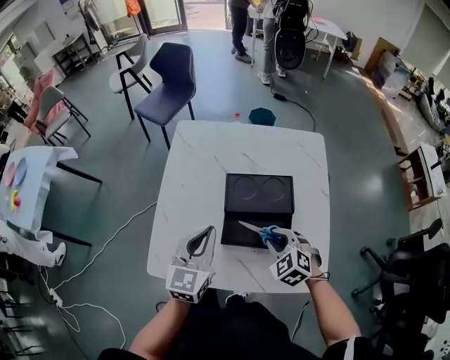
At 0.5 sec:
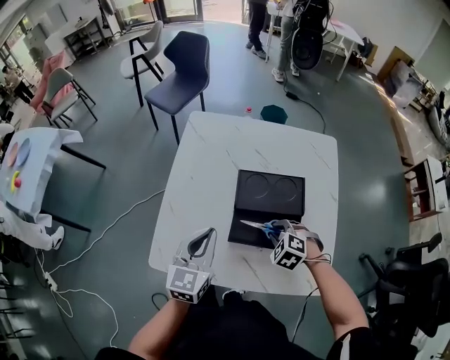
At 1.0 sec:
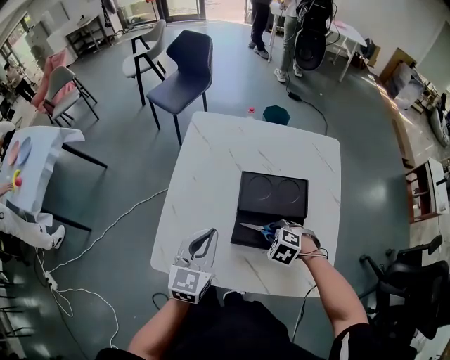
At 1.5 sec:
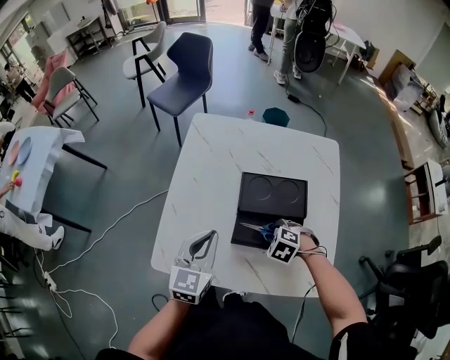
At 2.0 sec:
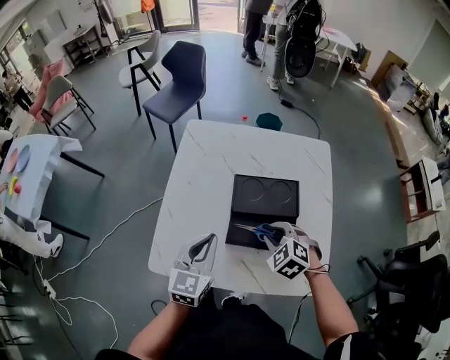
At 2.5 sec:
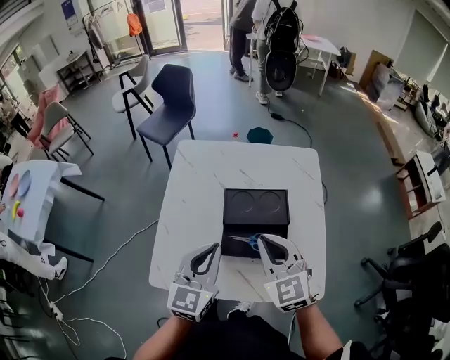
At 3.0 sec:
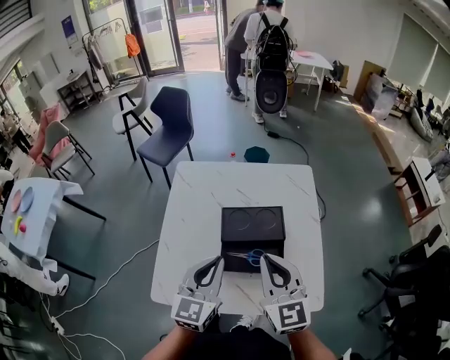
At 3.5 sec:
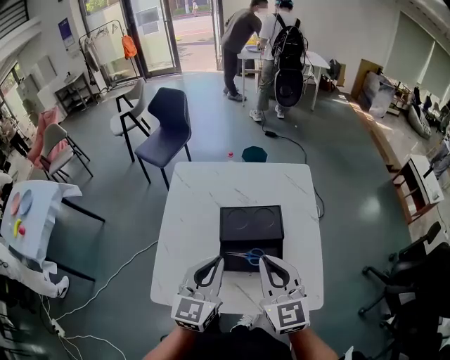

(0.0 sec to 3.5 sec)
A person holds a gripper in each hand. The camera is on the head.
0.0 sec - 2.0 sec: The right gripper goes downward and returns, about 10 cm each way.
2.0 sec - 3.5 sec: The left gripper is displaced upward and to the right by some 10 cm. The right gripper travels upward by about 20 cm, tilts its fingers about 50 degrees upward, and closes.

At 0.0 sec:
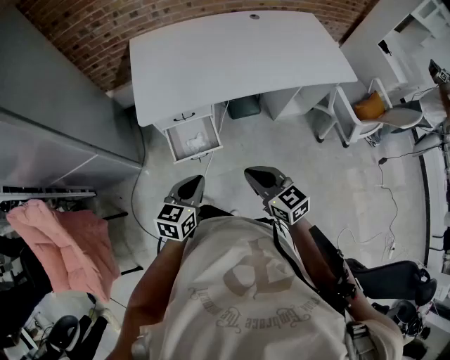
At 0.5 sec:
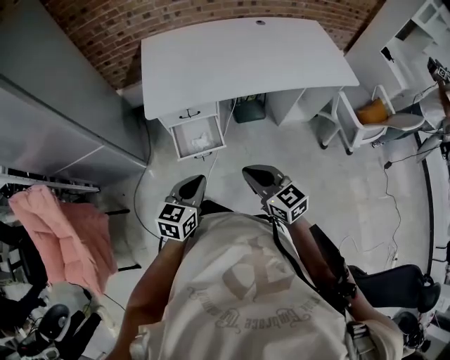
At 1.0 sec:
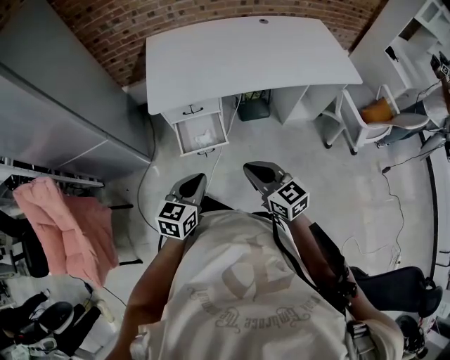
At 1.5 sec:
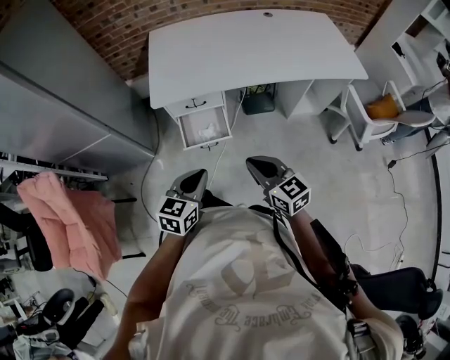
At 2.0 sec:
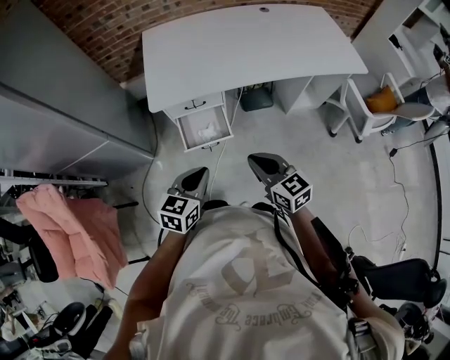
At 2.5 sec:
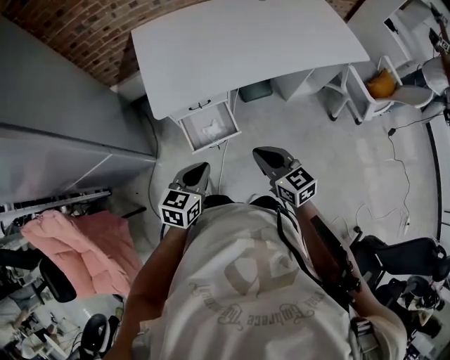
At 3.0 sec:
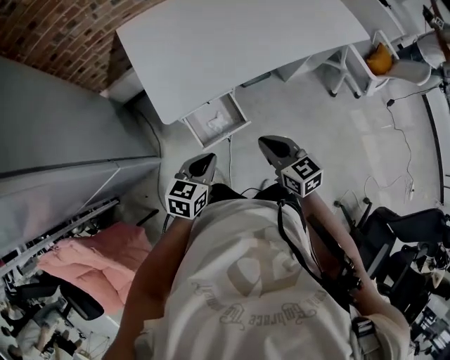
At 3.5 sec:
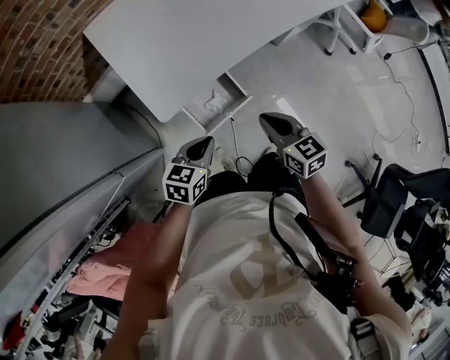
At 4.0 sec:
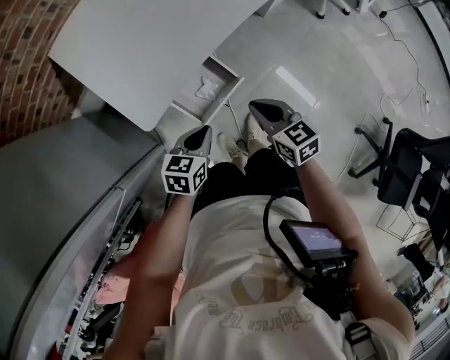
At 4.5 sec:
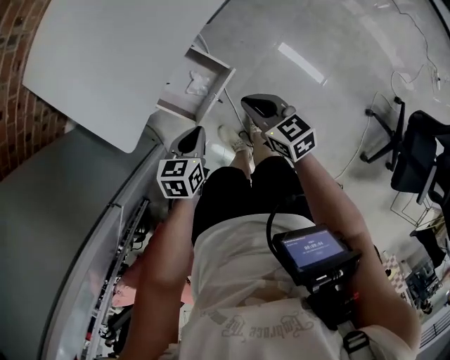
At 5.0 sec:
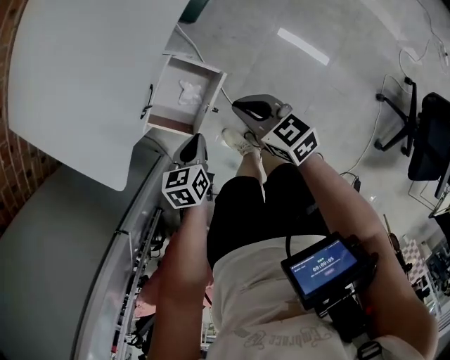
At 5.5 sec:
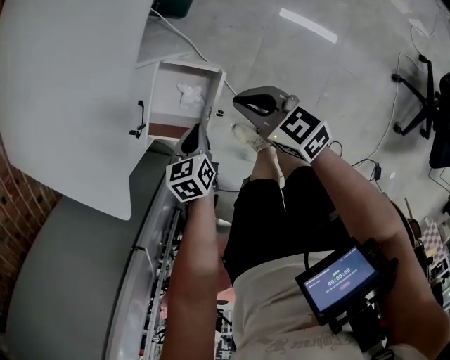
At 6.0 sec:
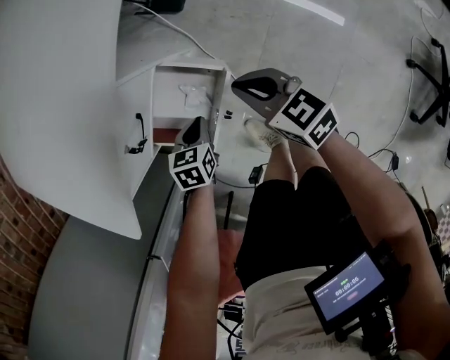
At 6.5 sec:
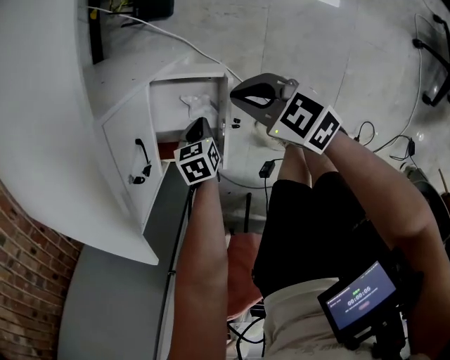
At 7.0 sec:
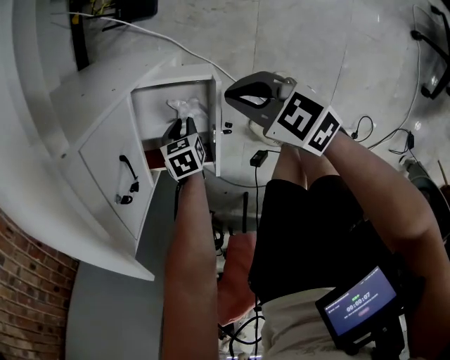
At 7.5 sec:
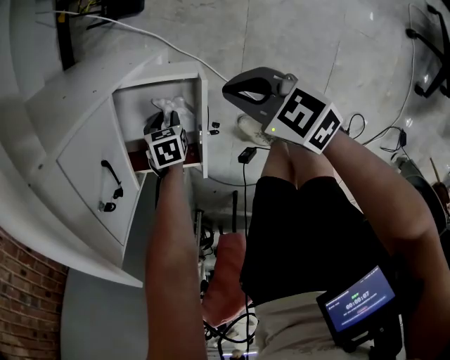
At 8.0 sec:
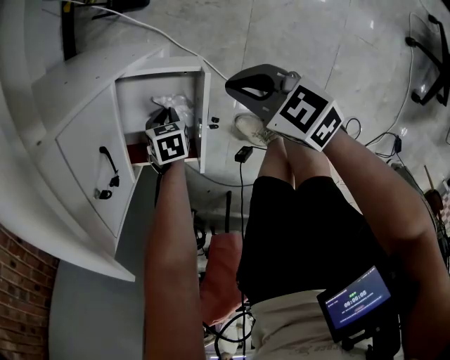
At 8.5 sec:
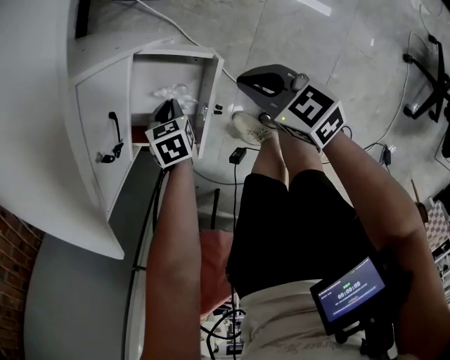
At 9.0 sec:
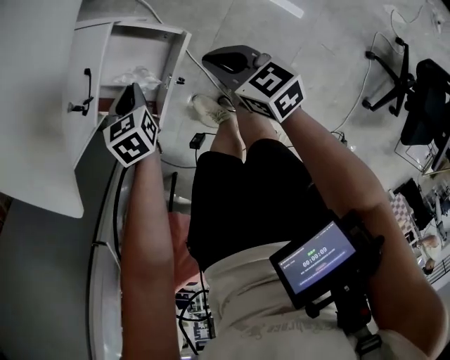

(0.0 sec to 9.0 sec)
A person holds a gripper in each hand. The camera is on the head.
2.0 sec - 4.5 sec: The two grippers go about 20 cm downward. The right gripper turns by about 40 degrees. The left gripper rotates about 40 degrees.
4.5 sec - 7.0 sec: The left gripper shifts about 35 cm downward, tilts its fingers about 30 degrees downward, and opens its fingers. Meanwhile the right gripper moves downward, roughly 20 cm.
7.0 sec - 9.0 sec: The left gripper moves upward, some 15 cm, and changes its angle by some 20 degrees, while the right gripper goes about 5 cm upward.

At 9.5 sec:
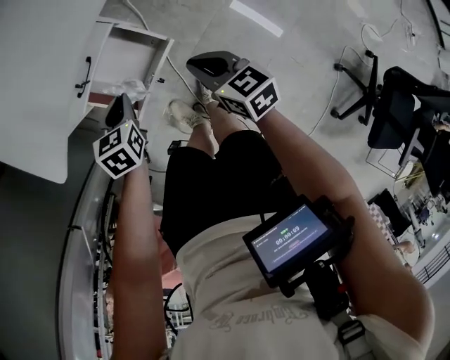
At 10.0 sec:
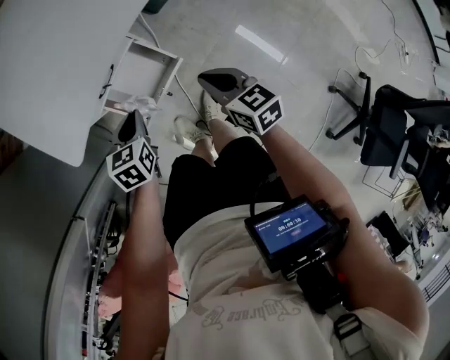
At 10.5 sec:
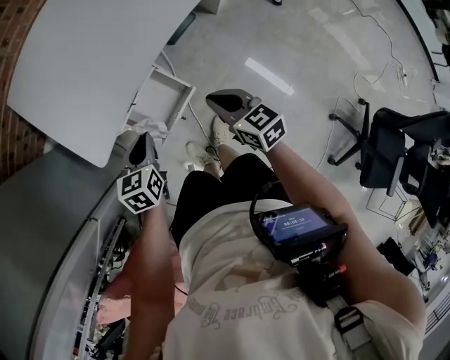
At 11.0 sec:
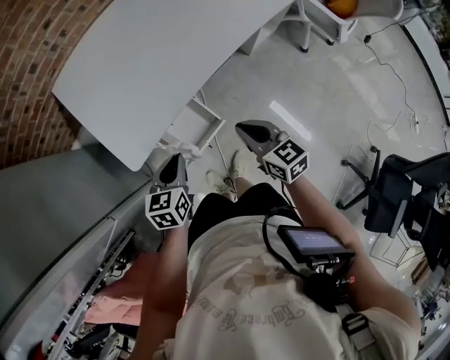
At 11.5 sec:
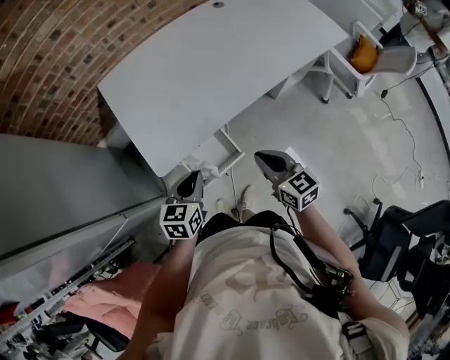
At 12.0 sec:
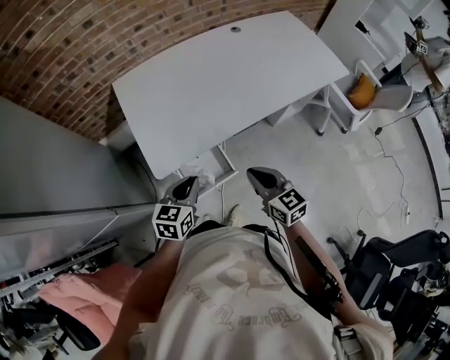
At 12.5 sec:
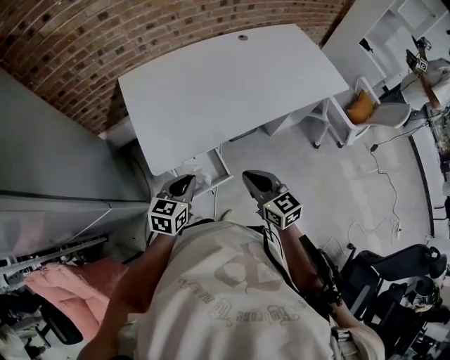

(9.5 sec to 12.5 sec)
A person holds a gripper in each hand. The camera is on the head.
9.5 sec - 11.0 sec: Both grippers move upward, about 25 cm.
11.0 sec - 12.5 sec: The grippers both shift upward by roughly 10 cm.

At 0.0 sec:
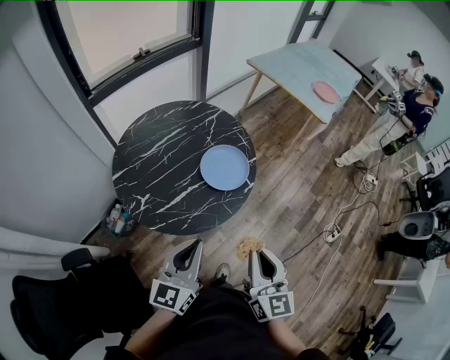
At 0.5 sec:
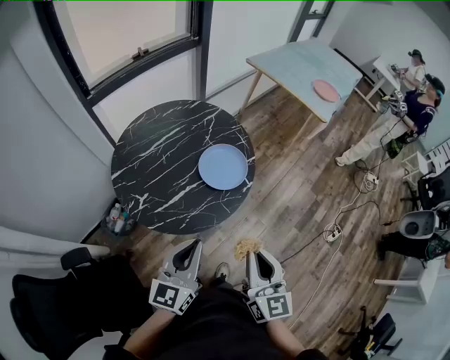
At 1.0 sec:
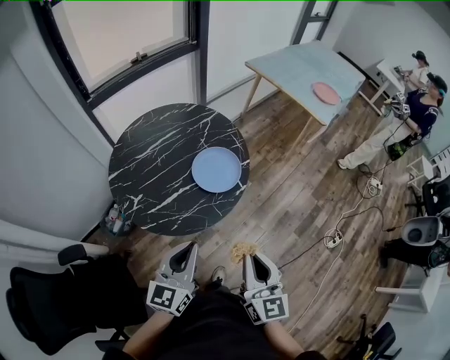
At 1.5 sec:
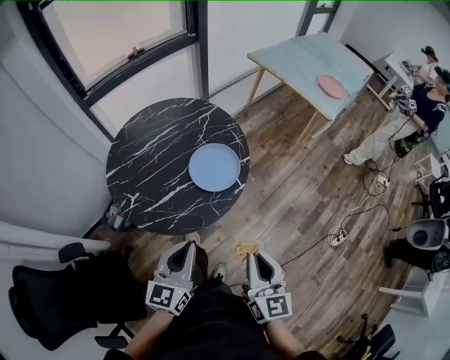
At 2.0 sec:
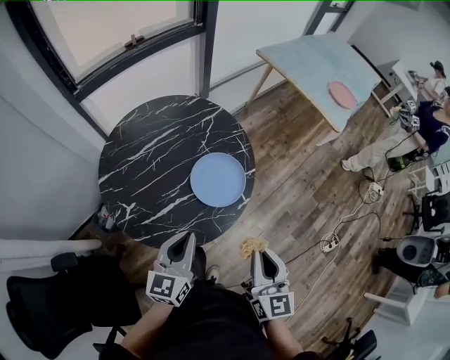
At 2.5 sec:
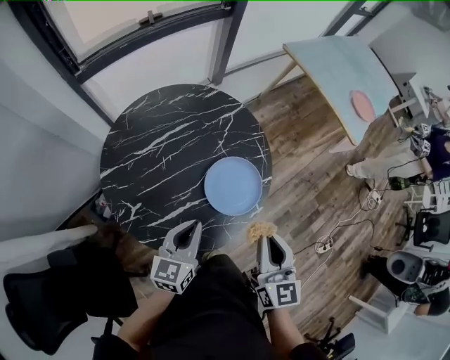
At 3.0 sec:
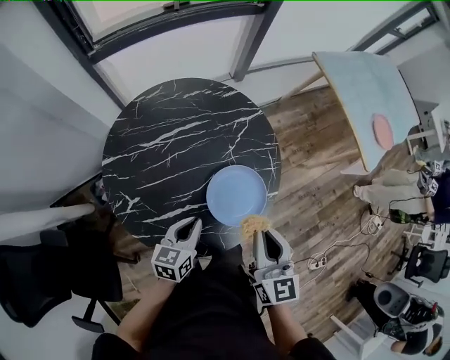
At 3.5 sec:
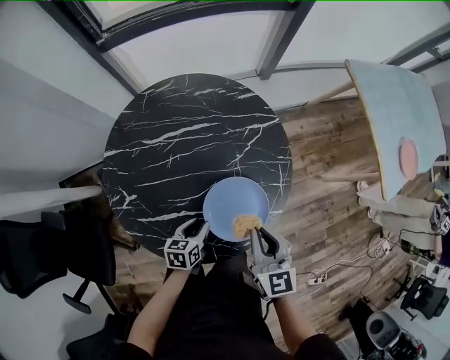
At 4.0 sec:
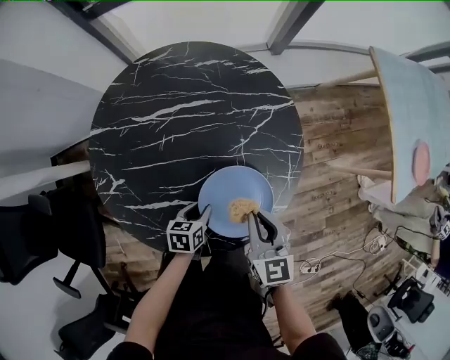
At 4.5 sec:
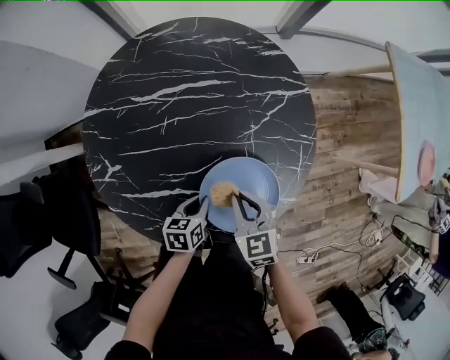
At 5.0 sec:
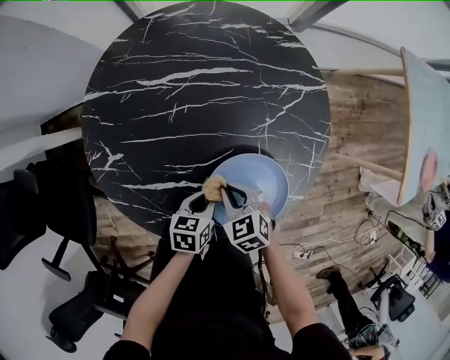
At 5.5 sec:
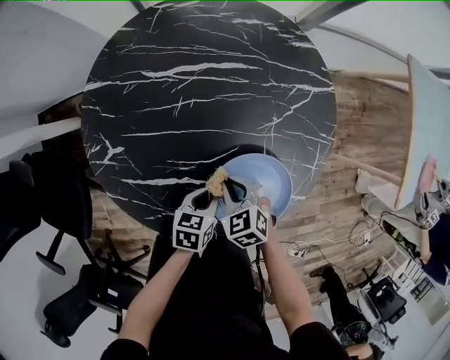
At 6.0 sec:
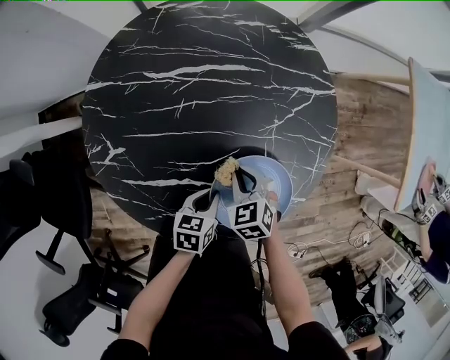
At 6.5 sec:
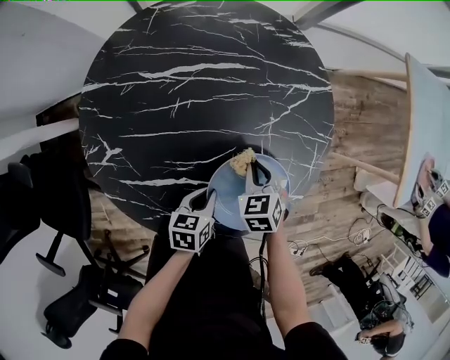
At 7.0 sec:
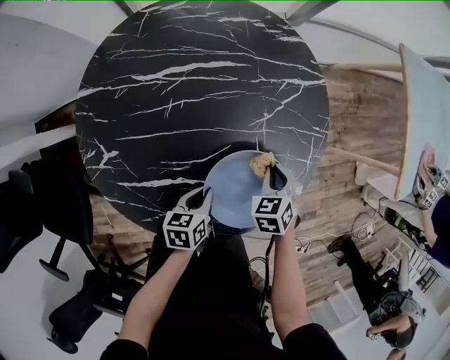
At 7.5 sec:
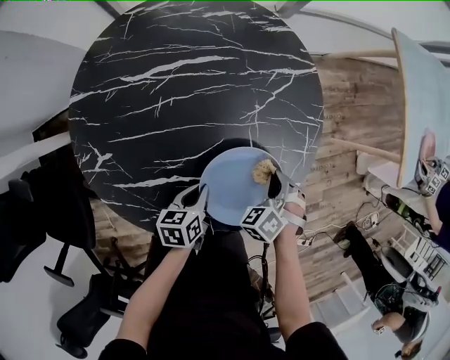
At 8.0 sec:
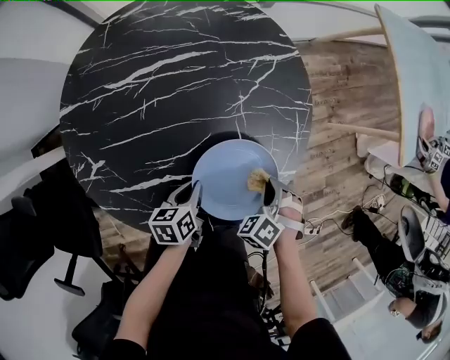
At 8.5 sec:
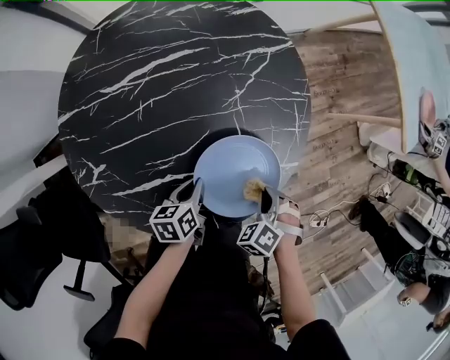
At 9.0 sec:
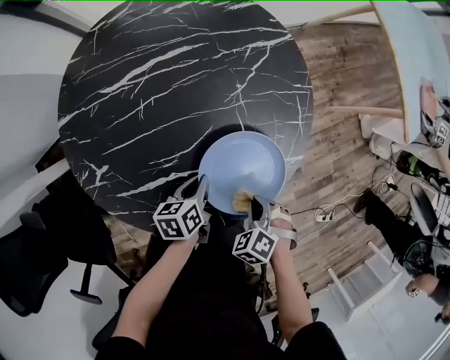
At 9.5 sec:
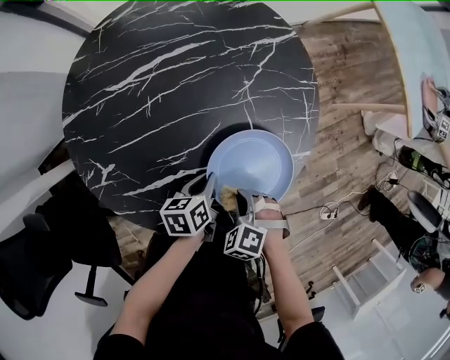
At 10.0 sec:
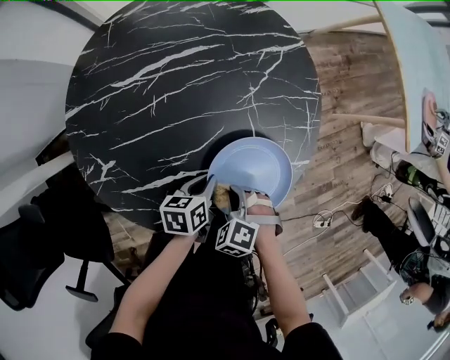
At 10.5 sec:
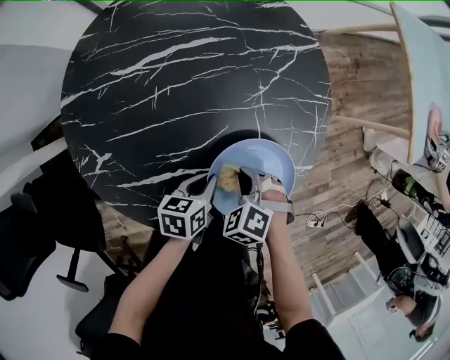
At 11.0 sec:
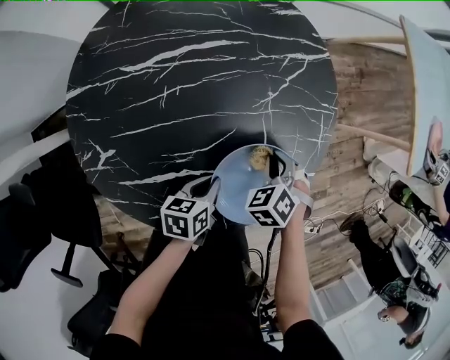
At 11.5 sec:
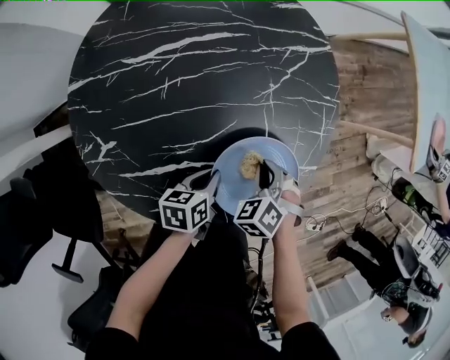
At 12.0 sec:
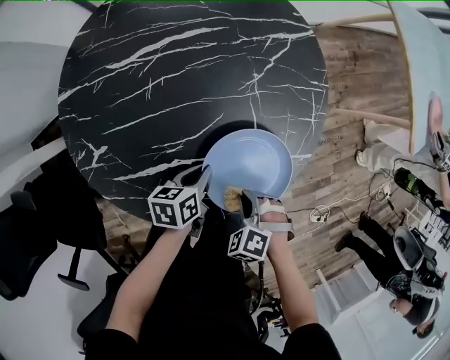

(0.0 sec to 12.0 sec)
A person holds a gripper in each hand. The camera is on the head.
0.0 sec - 2.0 sec: The left gripper travels forward and downward by roughly 15 cm; the right gripper goes approximately 15 cm forward.
2.0 sec - 4.0 sec: The left gripper travels downward and forward by approximately 40 cm, points its fingers about 40 degrees further downward, and opens up, while the right gripper is displaced forward and downward by approximately 35 cm, and changes its angle by roughly 40 degrees.
4.0 sec - 6.0 sec: The right gripper shifts some 20 cm downward and to the left, and rotates some 40 degrees, while the left gripper closes.
6.0 sec - 8.0 sec: The right gripper changes place by roughly 20 cm, and rotates about 40 degrees.
8.0 sec - 10.0 sec: The right gripper ends up approximately 15 cm from where it was, and rotates about 20 degrees.
